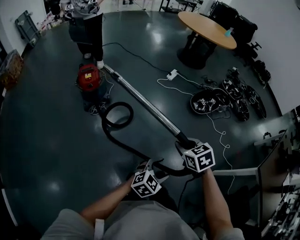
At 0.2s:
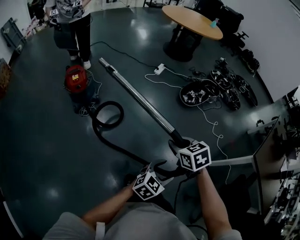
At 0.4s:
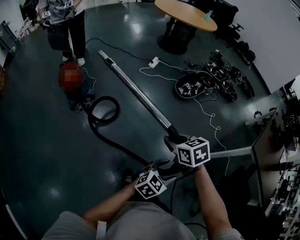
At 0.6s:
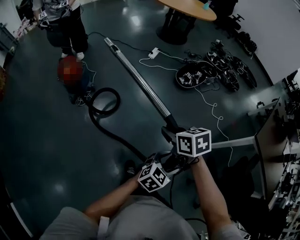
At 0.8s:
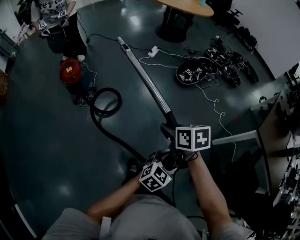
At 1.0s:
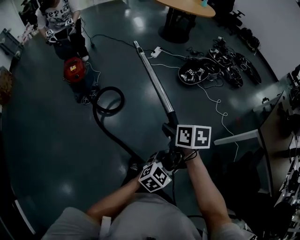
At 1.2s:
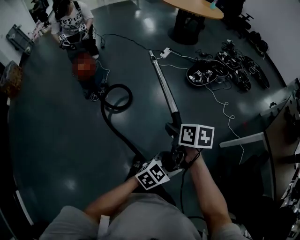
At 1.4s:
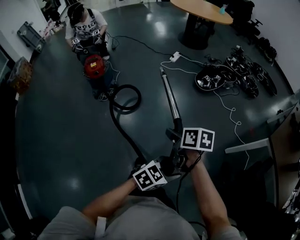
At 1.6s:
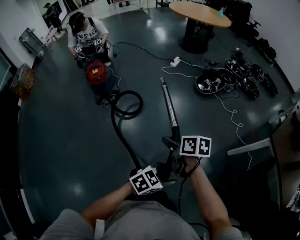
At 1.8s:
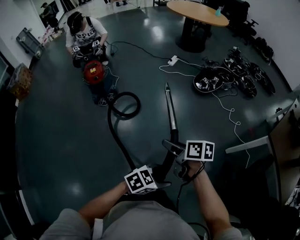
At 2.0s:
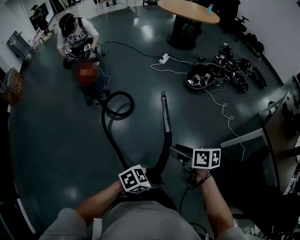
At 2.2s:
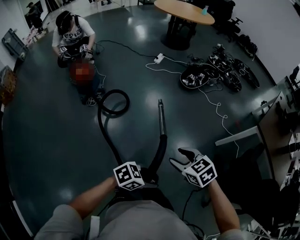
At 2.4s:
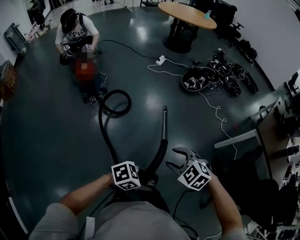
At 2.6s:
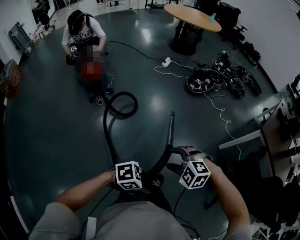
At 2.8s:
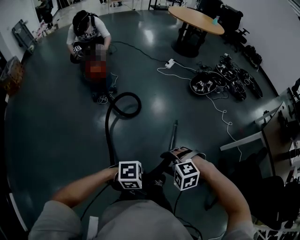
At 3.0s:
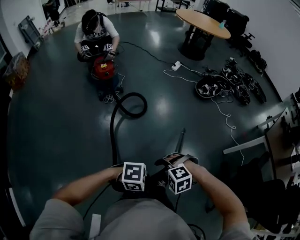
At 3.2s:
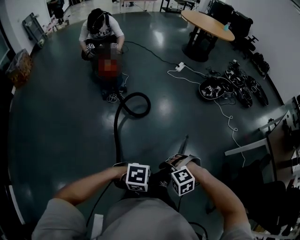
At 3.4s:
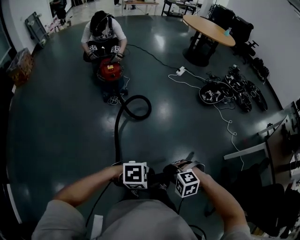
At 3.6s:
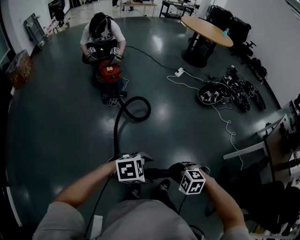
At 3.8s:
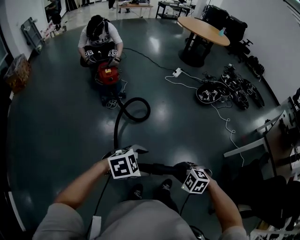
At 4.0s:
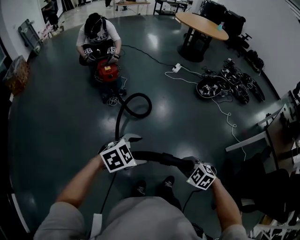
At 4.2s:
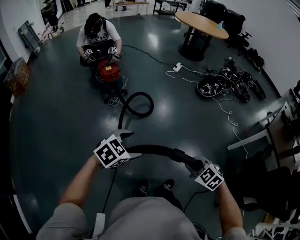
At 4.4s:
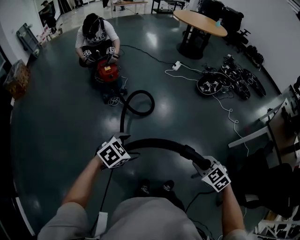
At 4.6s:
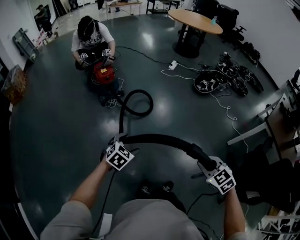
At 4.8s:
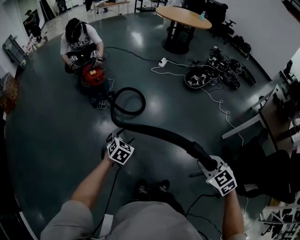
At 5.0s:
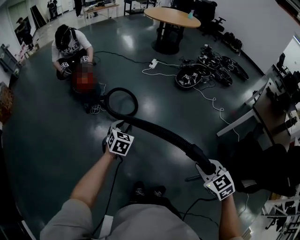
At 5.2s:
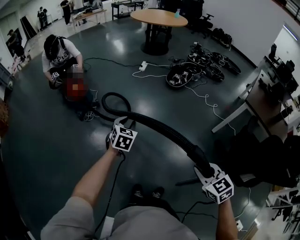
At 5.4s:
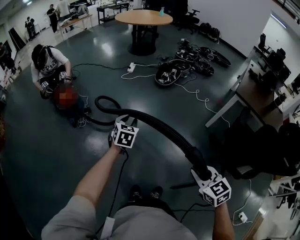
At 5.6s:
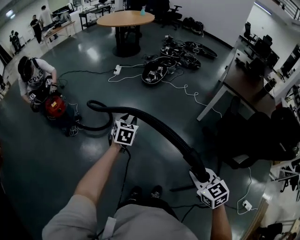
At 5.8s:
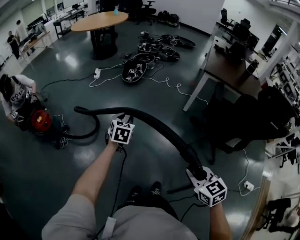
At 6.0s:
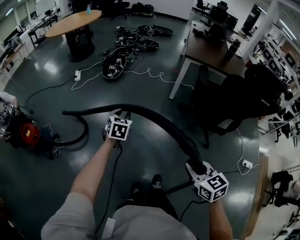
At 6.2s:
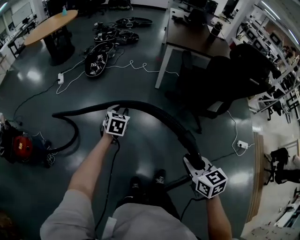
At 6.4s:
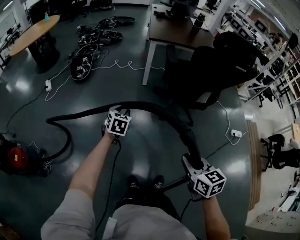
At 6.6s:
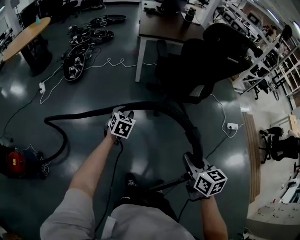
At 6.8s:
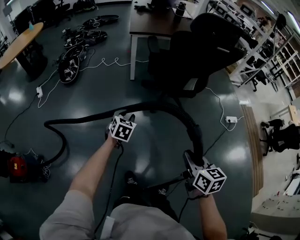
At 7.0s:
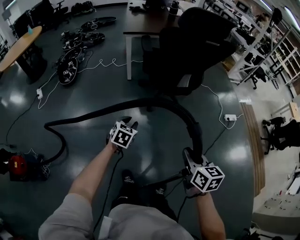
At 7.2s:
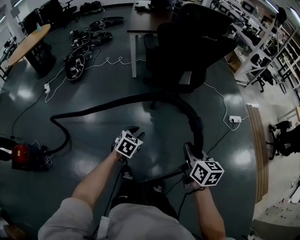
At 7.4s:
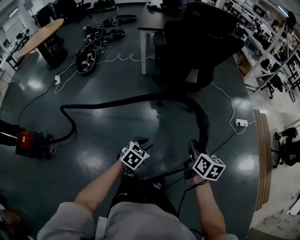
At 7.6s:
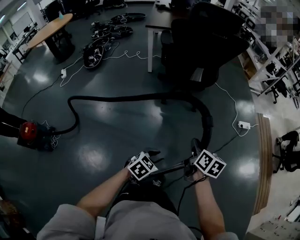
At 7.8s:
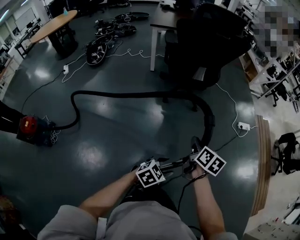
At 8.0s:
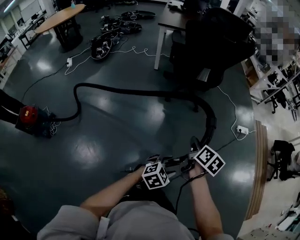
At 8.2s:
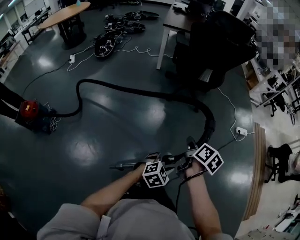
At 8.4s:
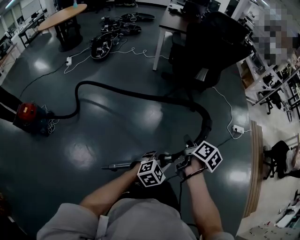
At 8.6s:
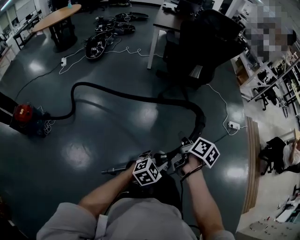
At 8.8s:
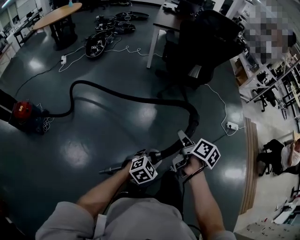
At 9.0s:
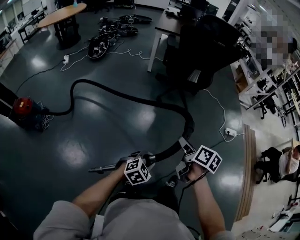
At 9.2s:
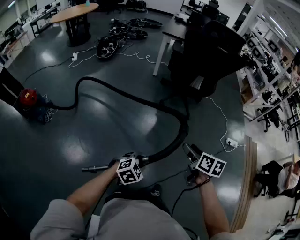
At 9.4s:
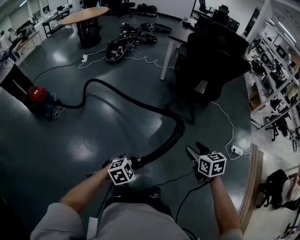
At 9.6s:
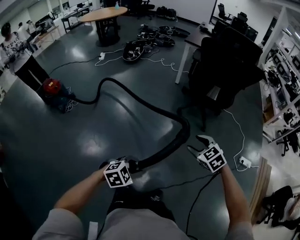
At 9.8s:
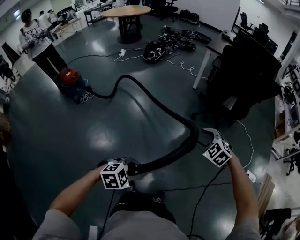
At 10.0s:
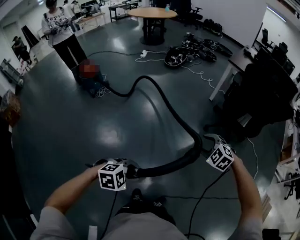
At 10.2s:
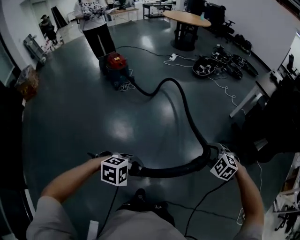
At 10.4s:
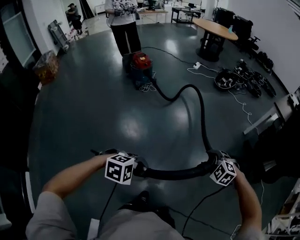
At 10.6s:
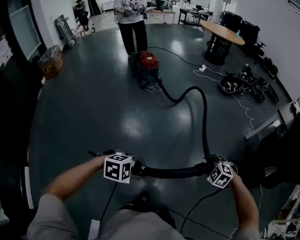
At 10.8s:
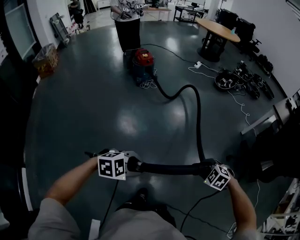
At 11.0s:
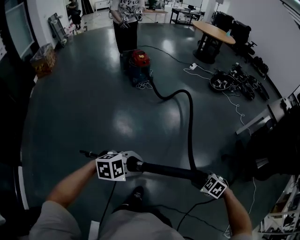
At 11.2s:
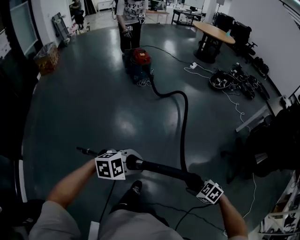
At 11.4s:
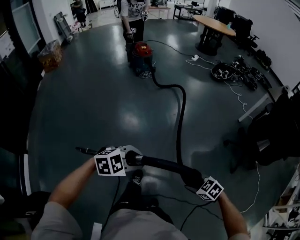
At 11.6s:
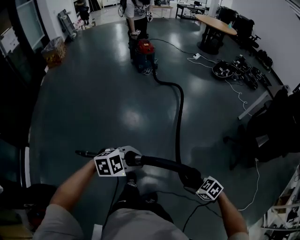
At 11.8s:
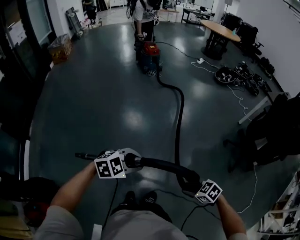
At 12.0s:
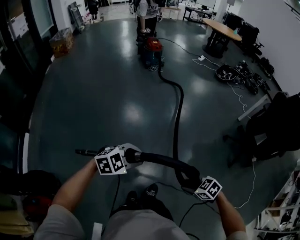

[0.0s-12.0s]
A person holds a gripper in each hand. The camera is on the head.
0.0s to 1.6s: The left gripper moves about 25 cm, and rotates some 20 degrees; the right gripper moves some 20 cm, and twists approximately 50 degrees clockwise, seen from behind.
1.6s to 3.0s: The right gripper changes place by some 30 cm, and rolls counterclockwise, seen from behind, by some 110 degrees; the left gripper changes place by approximately 30 cm, and swivels some 40 degrees.
3.0s to 4.4s: The right gripper shifts by some 10 cm, rolls clockwise, seen from behind, by roughly 50 degrees, and closes up, while the left gripper shifts by some 25 cm, and swivels approximately 50 degrees.
4.4s to 6.0s: The left gripper reaches some 5 cm downward, then returns, and closes up, while the right gripper ends up about 25 cm from where it was, and swivels approximately 70 degrees.
6.0s to 7.6s: The left gripper shifts by approximately 60 cm, and turns by approximately 60 degrees; the right gripper shifts by approximately 35 cm, and rotates around the line of its fingers by roughly 50 degrees, clockwise from behind.
7.6s to 9.0s: Both grippers move backward, about 15 cm. The left gripper opens, then closes once more. The right gripper opens.
9.0s to 10.4s: The left gripper ends up roughly 25 cm from where it was, and swivels roughly 30 degrees; the right gripper ends up approximately 20 cm from where it was, and twists some 130 degrees counterclockwise, seen from behind.
10.4s to 12.0s: The left gripper ends up roughly 35 cm from where it was, and changes its angle by roughly 30 degrees. The right gripper ends up about 50 cm from where it was, and rotates about 40 degrees.

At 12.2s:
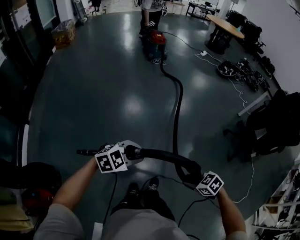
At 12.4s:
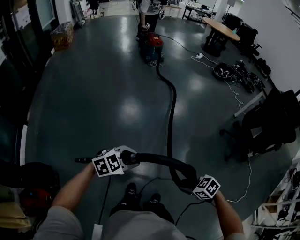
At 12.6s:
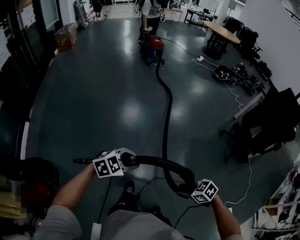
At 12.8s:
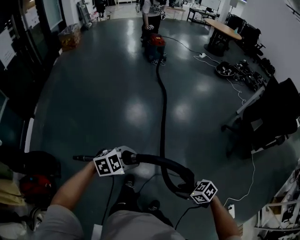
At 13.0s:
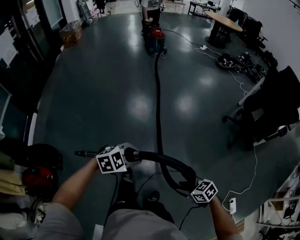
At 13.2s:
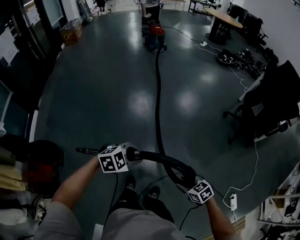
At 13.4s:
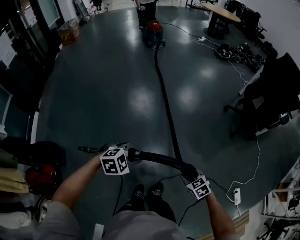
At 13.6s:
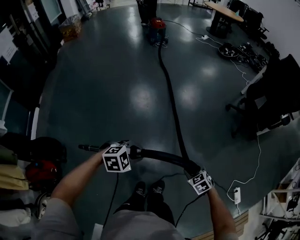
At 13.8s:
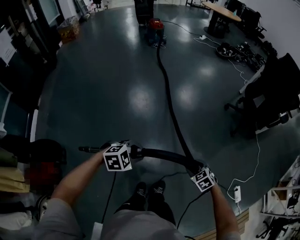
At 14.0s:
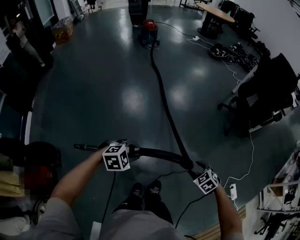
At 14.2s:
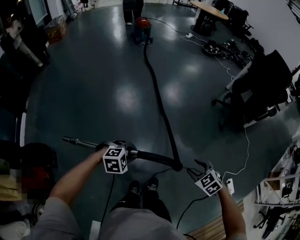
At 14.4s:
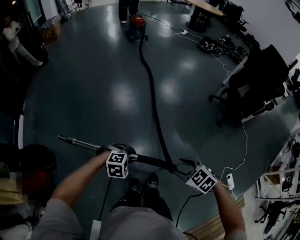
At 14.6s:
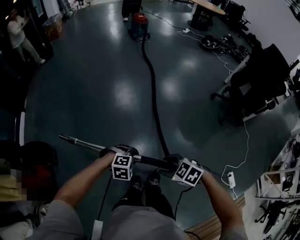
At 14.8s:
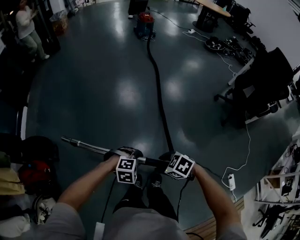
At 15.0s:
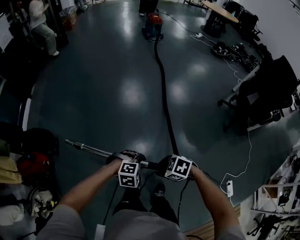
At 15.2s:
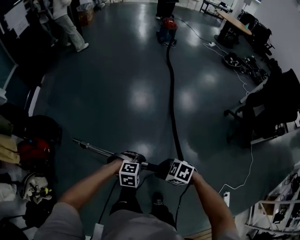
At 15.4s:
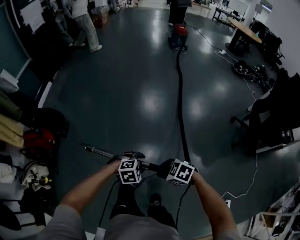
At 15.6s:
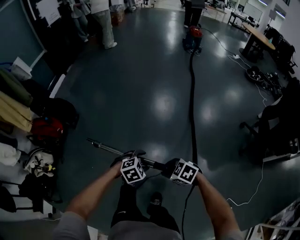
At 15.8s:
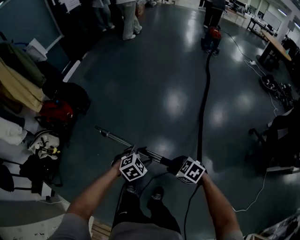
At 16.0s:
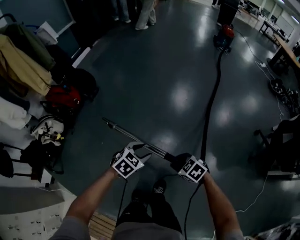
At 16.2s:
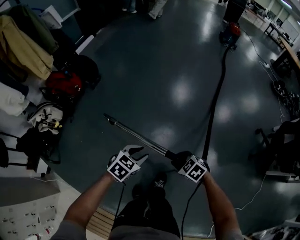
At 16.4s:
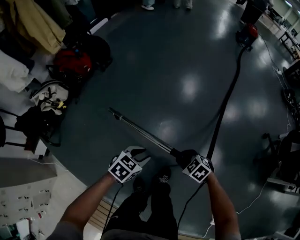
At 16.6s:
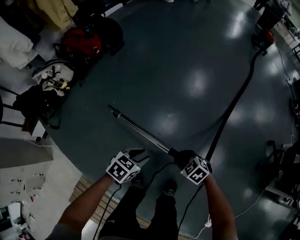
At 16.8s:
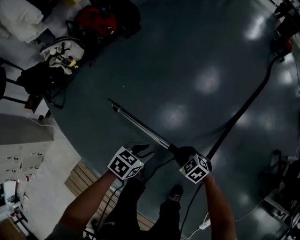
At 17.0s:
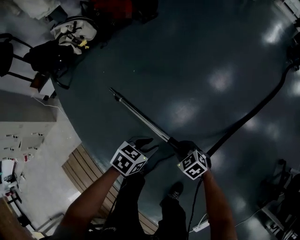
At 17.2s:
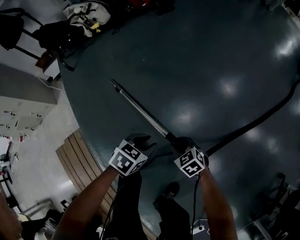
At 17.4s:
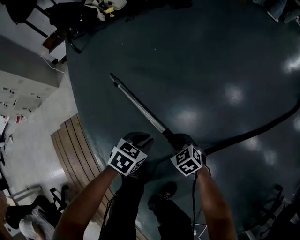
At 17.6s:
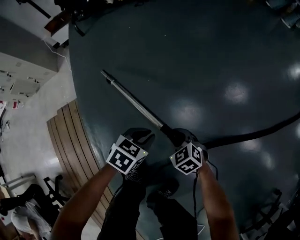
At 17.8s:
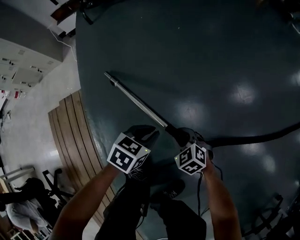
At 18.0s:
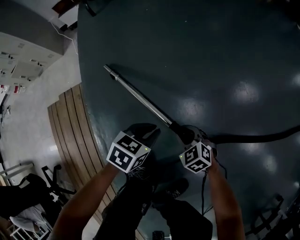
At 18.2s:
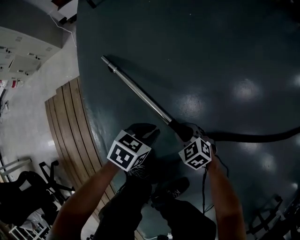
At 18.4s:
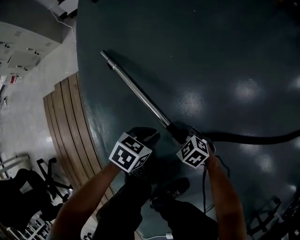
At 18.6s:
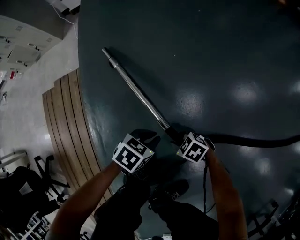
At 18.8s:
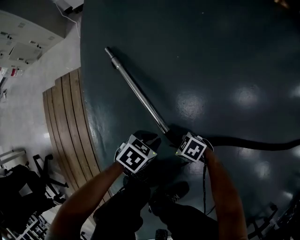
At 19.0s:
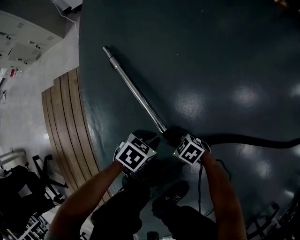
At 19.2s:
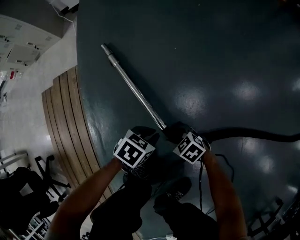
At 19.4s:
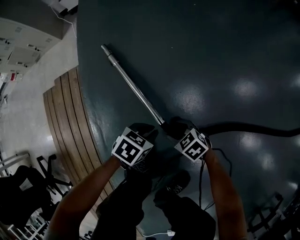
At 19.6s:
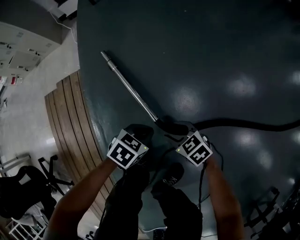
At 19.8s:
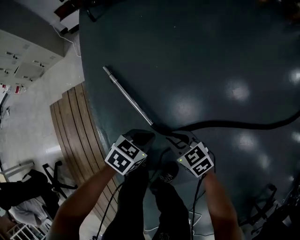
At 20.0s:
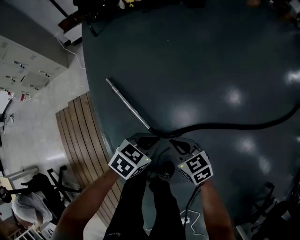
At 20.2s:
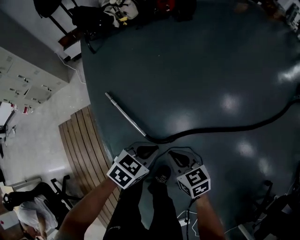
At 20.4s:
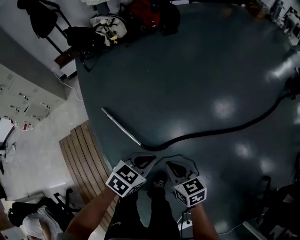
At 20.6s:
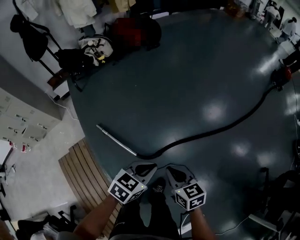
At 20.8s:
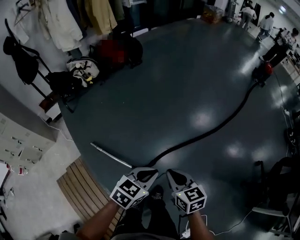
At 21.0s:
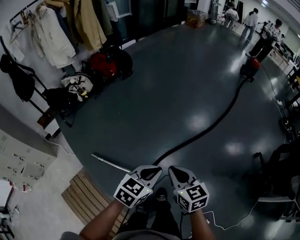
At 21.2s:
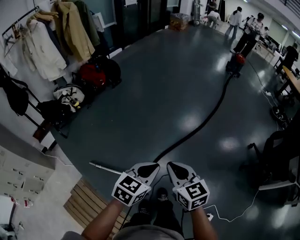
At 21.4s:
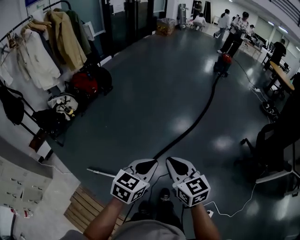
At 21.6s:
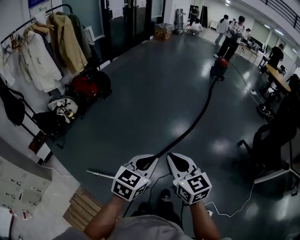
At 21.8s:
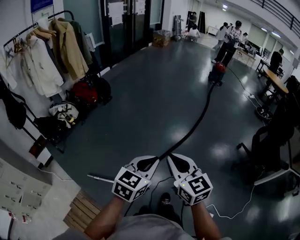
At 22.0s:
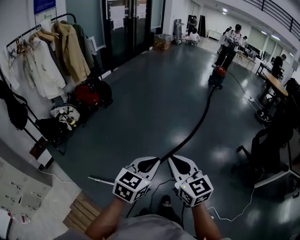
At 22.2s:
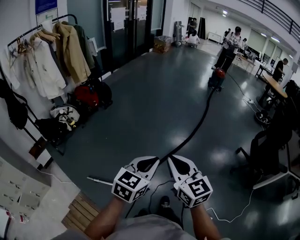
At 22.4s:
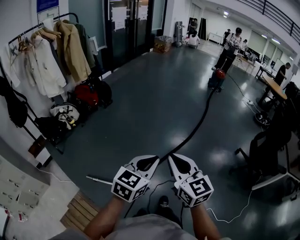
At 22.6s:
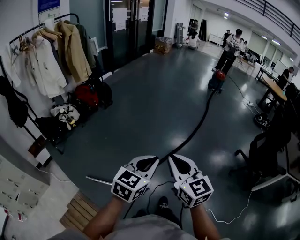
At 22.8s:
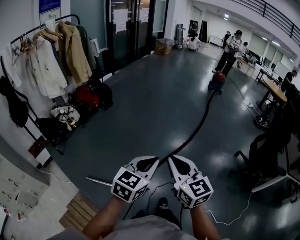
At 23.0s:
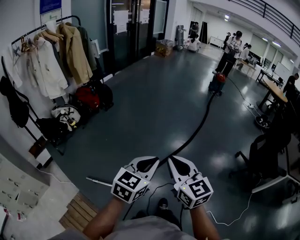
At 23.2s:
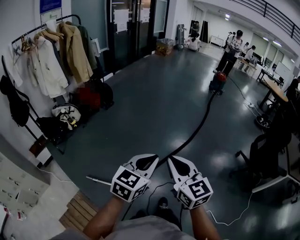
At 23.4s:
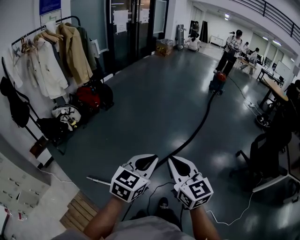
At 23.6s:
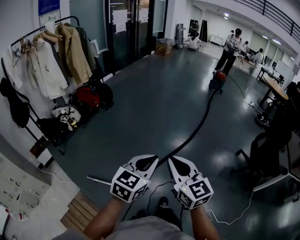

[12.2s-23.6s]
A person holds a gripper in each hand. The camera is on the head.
12.2s to 13.6s: The left gripper changes place by some 30 cm, while the right gripper shifts by about 30 cm, and swivels approximately 20 degrees.
13.6s to 15.0s: The left gripper shifts by about 15 cm; the right gripper shifts by some 20 cm, and rotates about 40 degrees.
15.0s to 16.4s: The right gripper shifts by about 25 cm, and swivels some 30 degrees. Meanwhile the left gripper shifts by roughly 30 cm, and twists roughly 80 degrees counterclockwise, seen from behind.
16.4s to 17.8s: The grippers both shift downward by roughly 40 cm. The right gripper turns by roughly 40 degrees. Meanwhile the left gripper changes its angle by about 50 degrees.
17.8s to 19.4s: Both grippers move downward, some 15 cm. The right gripper changes its angle by about 20 degrees, and opens.
19.4s to 20.8s: The two grippers go roughly 70 cm upward. The right gripper turns by some 70 degrees, and closes; the left gripper turns by approximately 40 degrees.
20.8s to 22.2s: The two grippers go about 25 cm upward. The left gripper changes its angle by approximately 30 degrees, while the right gripper swivels some 40 degrees.
22.2s to 23.6s: The grippers make only small movements.
